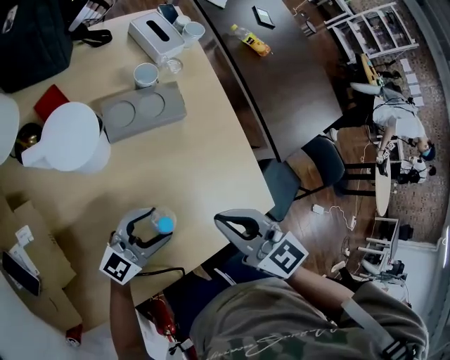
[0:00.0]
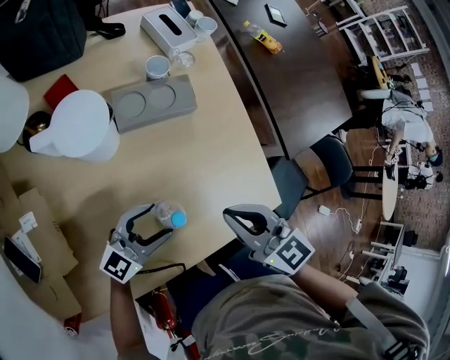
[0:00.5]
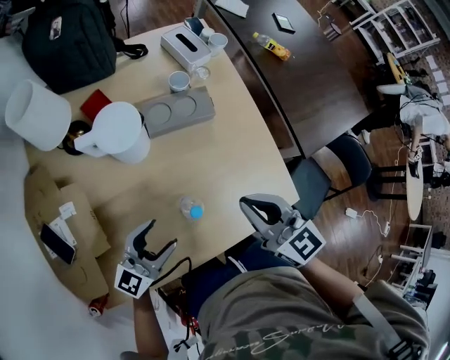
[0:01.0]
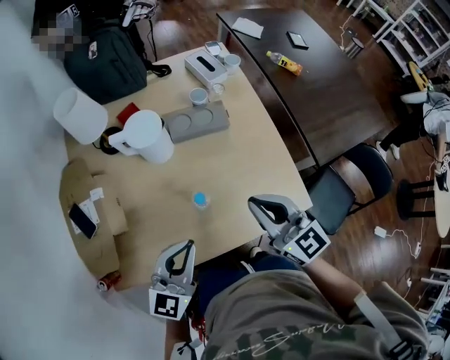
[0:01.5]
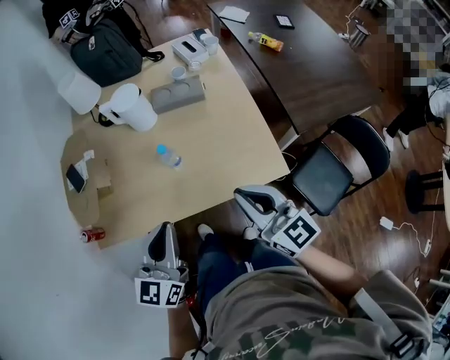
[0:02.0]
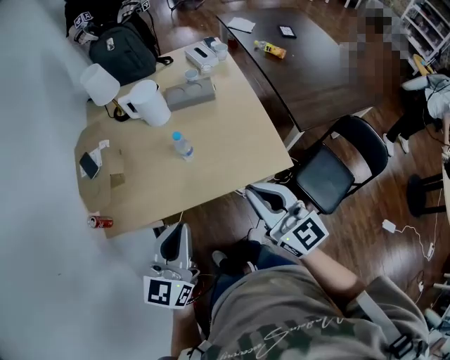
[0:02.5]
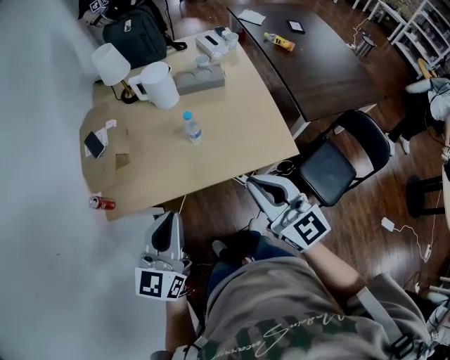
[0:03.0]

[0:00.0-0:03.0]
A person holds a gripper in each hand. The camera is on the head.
0:00.0 to 0:01.5: The right gripper is displaced upward by roughly 10 cm. Meanwhile the left gripper is displaced upward and backward by about 20 cm, rotates some 40 degrees, and closes its fingers.
0:01.5 to 0:03.0: The left gripper moves backward and upward, some 25 cm, and rotates approximately 20 degrees. Meanwhile the right gripper travels backward by roughly 25 cm.

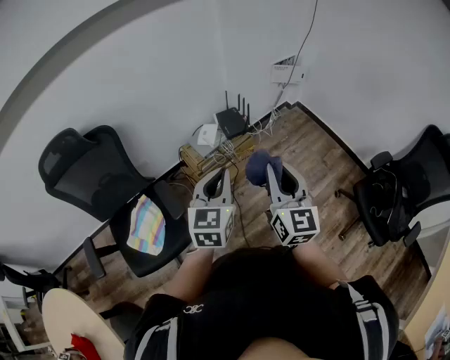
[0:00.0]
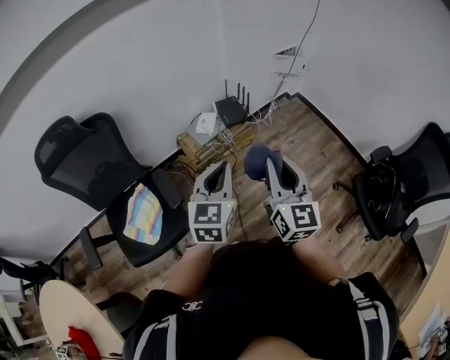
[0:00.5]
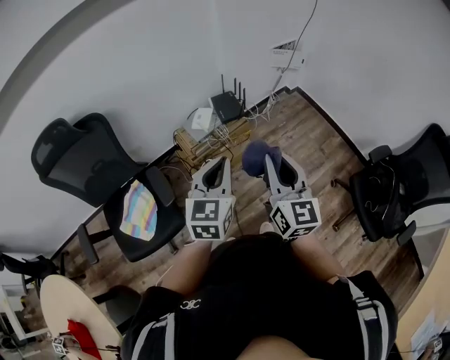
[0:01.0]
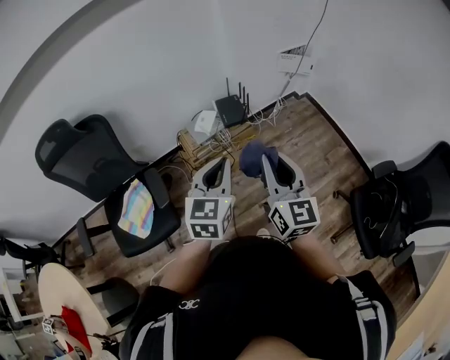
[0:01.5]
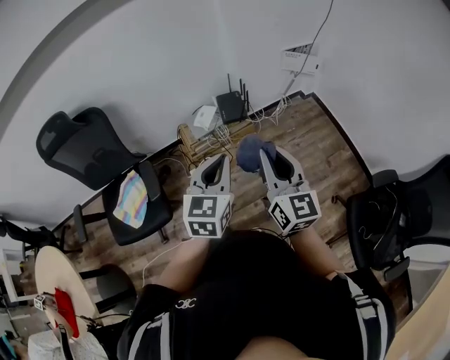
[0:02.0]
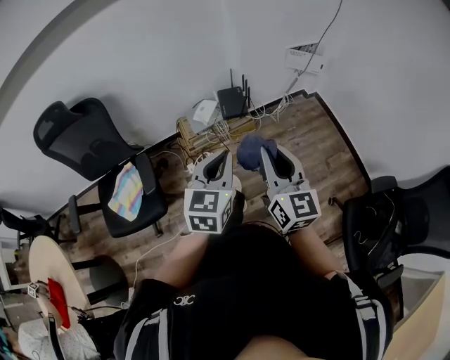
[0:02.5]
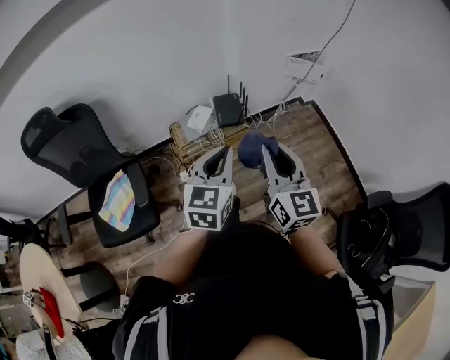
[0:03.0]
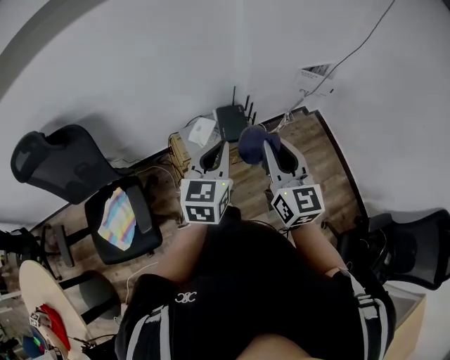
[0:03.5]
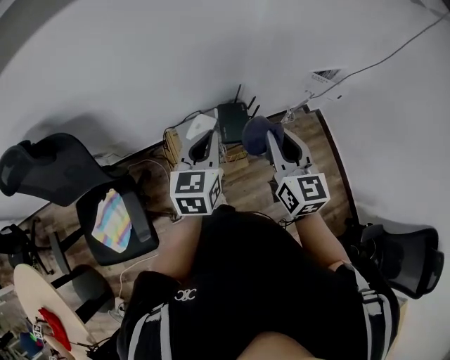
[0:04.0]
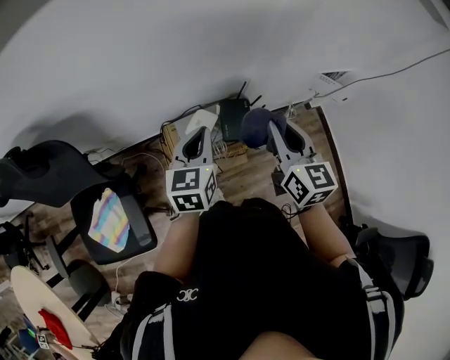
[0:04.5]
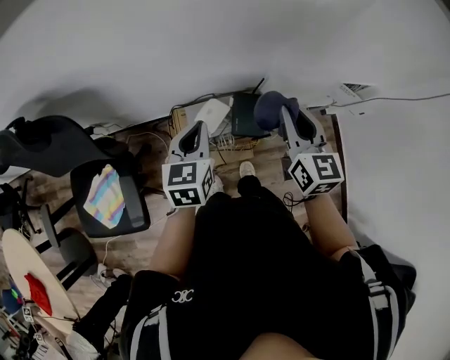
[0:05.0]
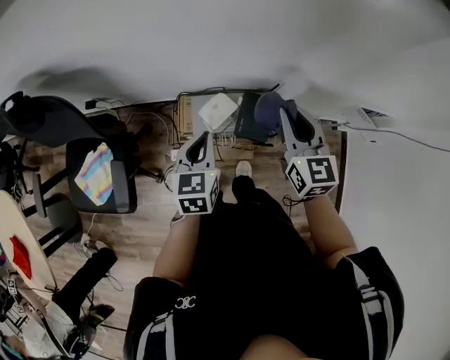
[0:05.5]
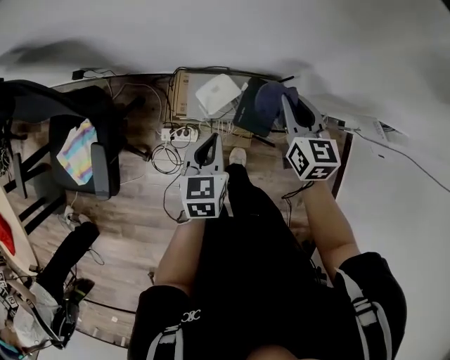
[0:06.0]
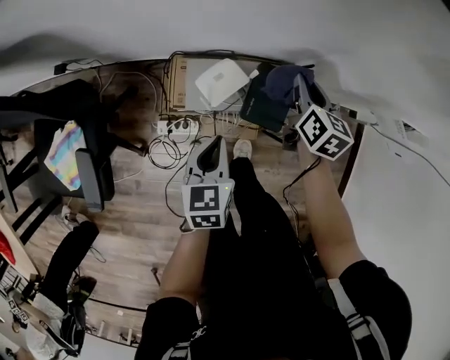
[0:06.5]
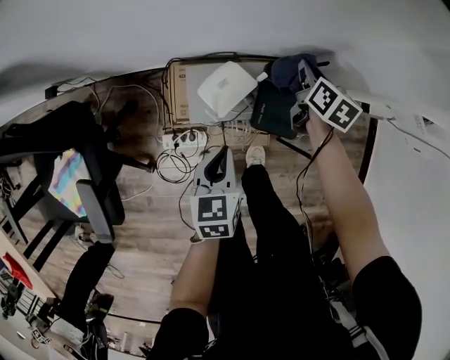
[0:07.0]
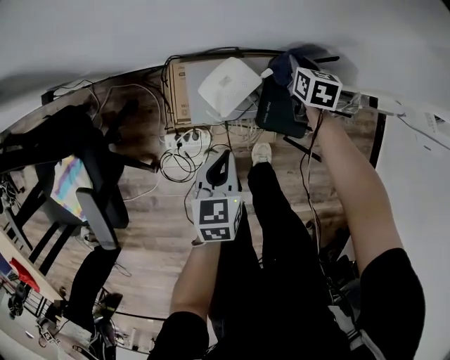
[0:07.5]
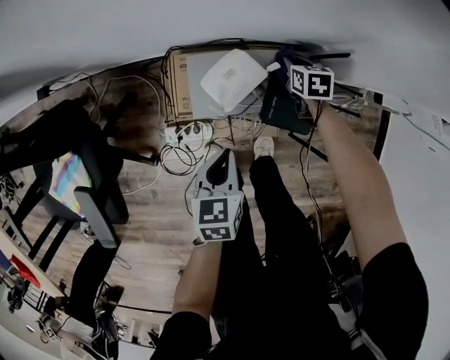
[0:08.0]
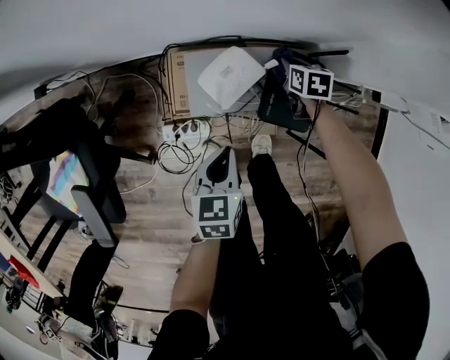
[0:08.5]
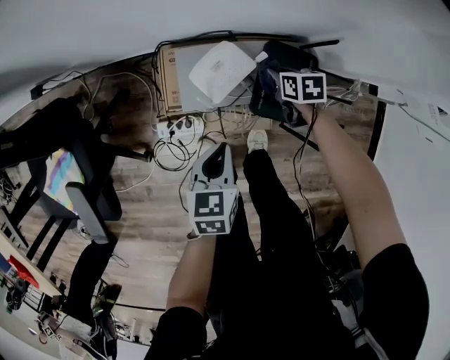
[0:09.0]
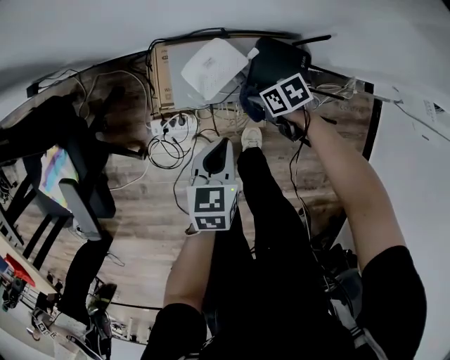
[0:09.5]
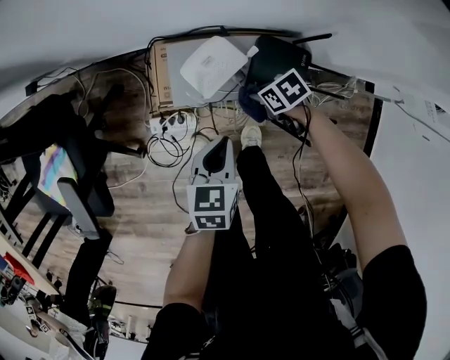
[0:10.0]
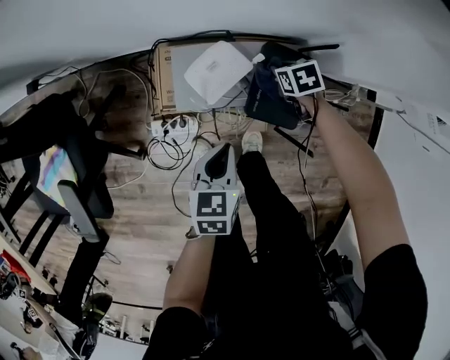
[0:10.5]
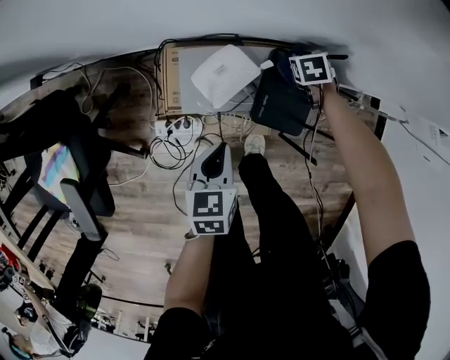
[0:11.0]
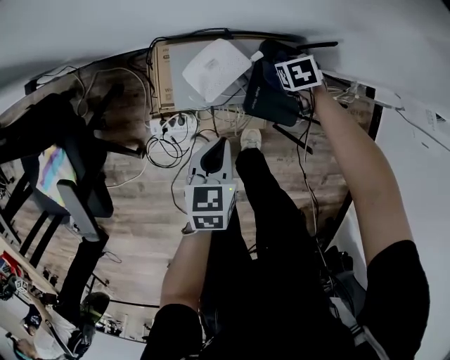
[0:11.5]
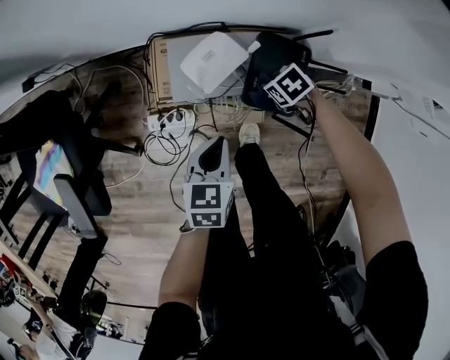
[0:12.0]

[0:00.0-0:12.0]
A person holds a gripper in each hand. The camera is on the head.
0:00.0 to 0:02.0: The grippers both shift to the right and forward by roughly 15 cm.
0:02.0 to 0:04.0: Both grippers move forward, approximately 40 cm.
0:04.0 to 0:06.0: The left gripper moves downward, roughly 25 cm, and turns by about 30 degrees; the right gripper moves some 35 cm, and swivels approximately 30 degrees.
0:06.0 to 0:08.0: The right gripper is displaced downward by about 40 cm, and points its fingers about 30 degrees further downward. Meanwhile the left gripper moves downward, some 25 cm.
0:08.0 to 0:10.0: The right gripper moves approximately 15 cm, and swivels approximately 40 degrees, while the left gripper moves roughly 5 cm.

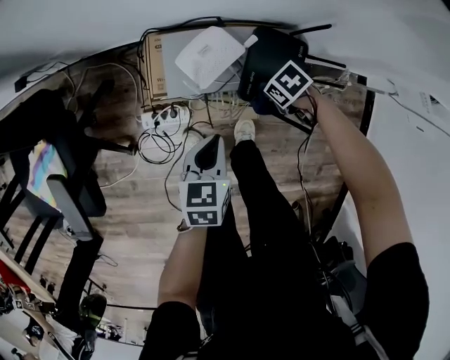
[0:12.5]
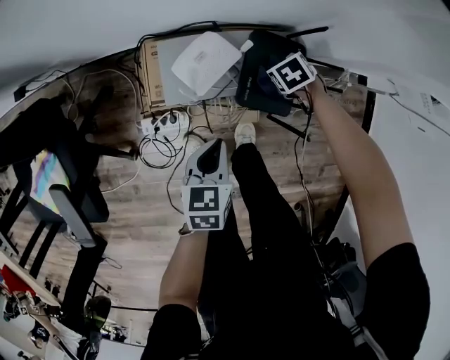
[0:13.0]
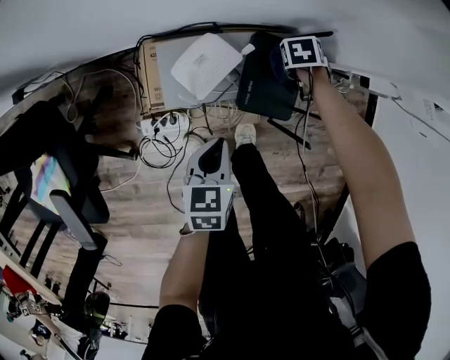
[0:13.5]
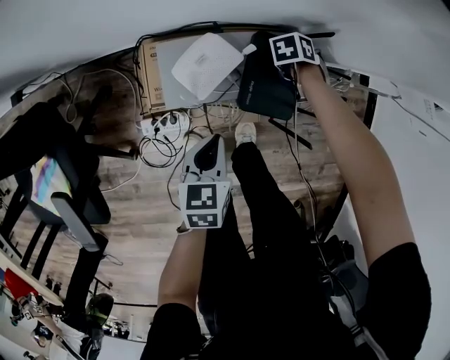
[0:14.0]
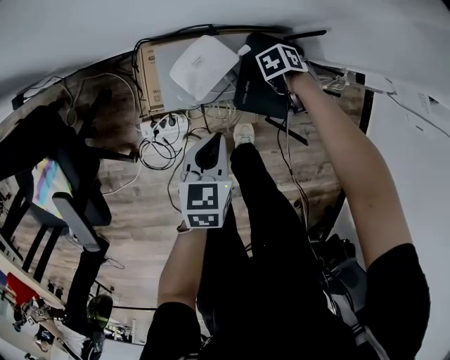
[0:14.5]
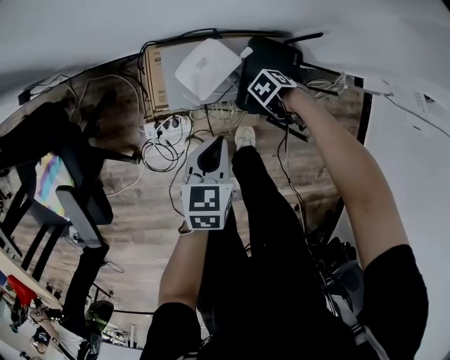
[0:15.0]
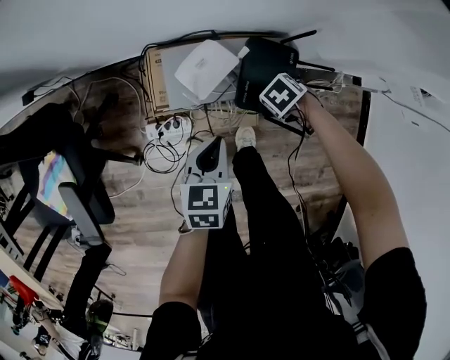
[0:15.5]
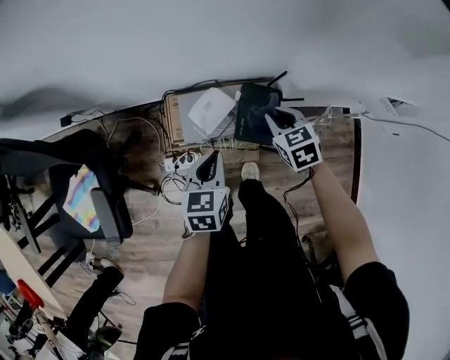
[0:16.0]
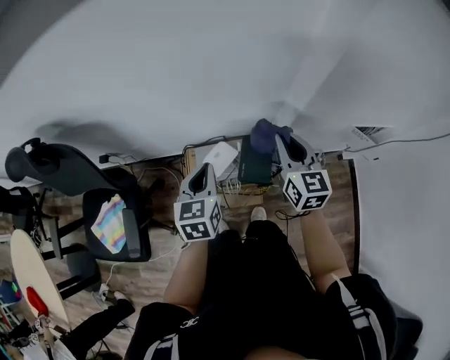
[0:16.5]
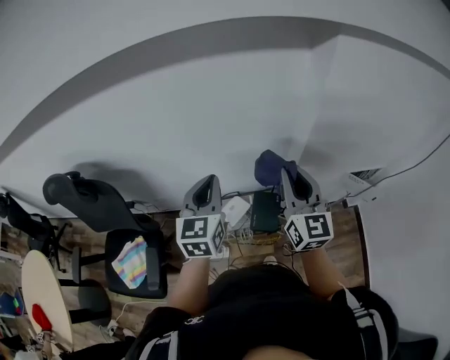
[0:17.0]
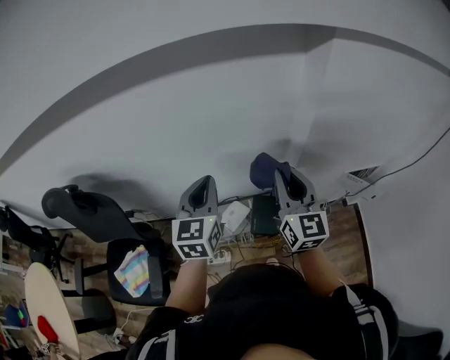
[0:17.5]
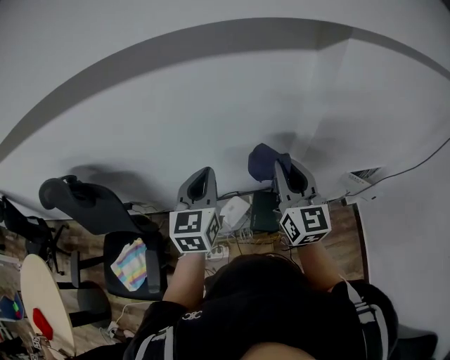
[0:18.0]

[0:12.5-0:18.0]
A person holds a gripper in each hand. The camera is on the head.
0:12.5 to 0:14.5: The right gripper shifts by approximately 15 cm, and turns by some 40 degrees.
0:14.5 to 0:16.0: The left gripper shifts some 15 cm upward; the right gripper travels upward by roughly 25 cm, and rotates roughly 60 degrees.
0:16.0 to 0:18.0: Both grippers move upward, approximately 50 cm. The left gripper changes its angle by approximately 30 degrees, while the right gripper angles its fingers upward, by roughly 60 degrees.

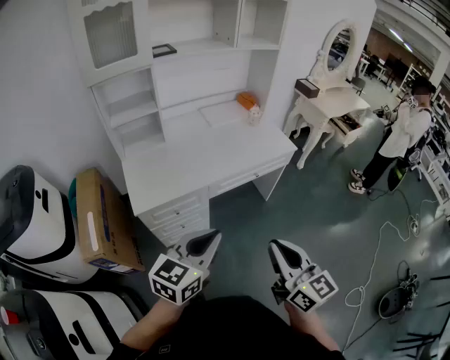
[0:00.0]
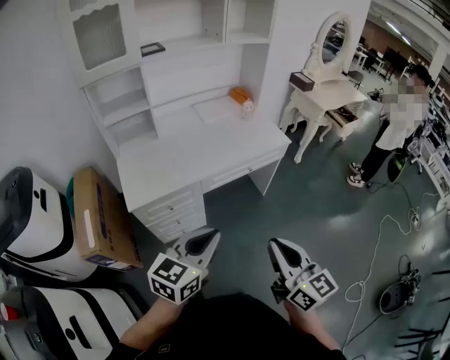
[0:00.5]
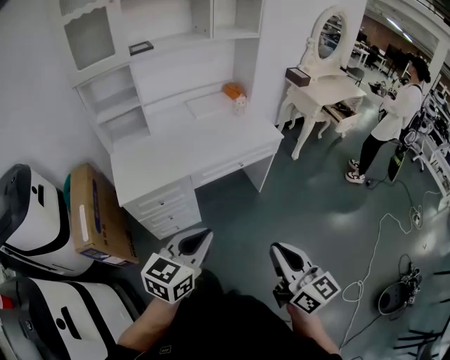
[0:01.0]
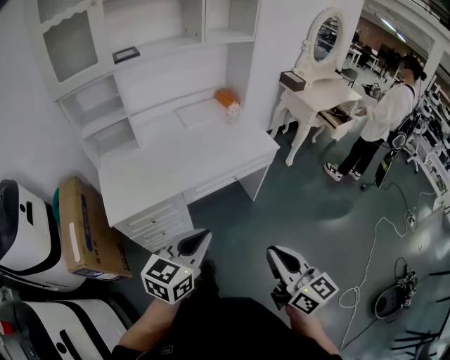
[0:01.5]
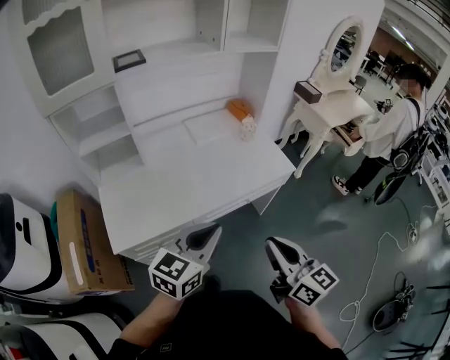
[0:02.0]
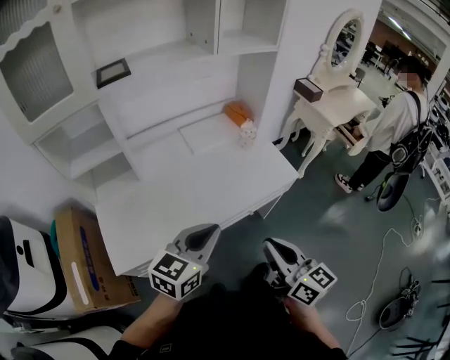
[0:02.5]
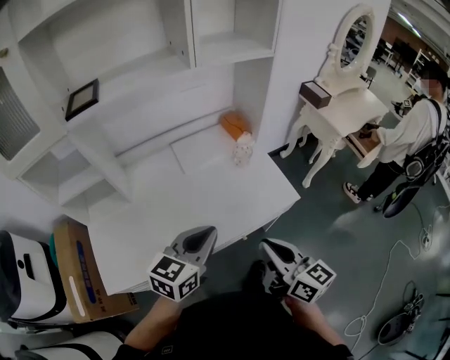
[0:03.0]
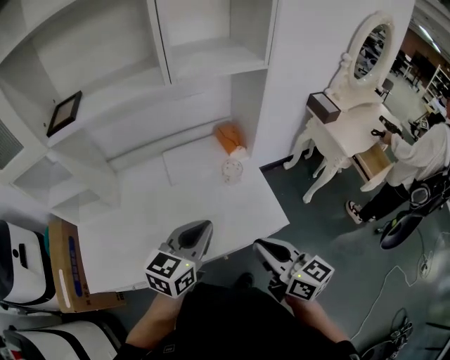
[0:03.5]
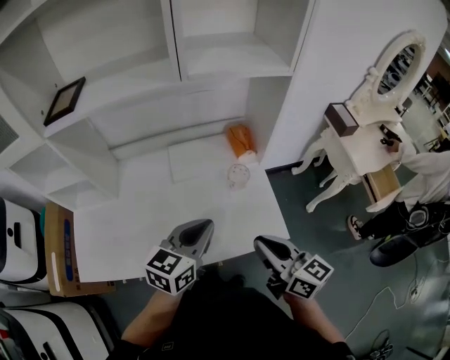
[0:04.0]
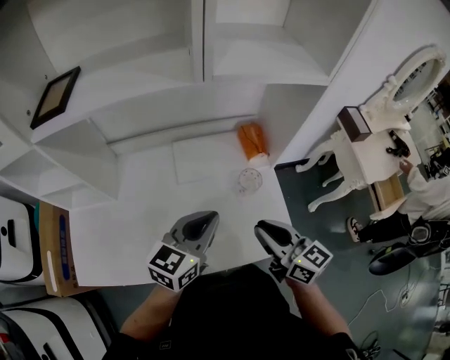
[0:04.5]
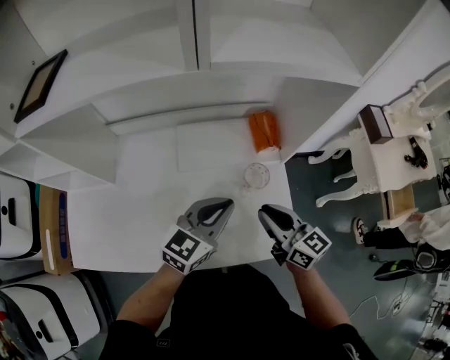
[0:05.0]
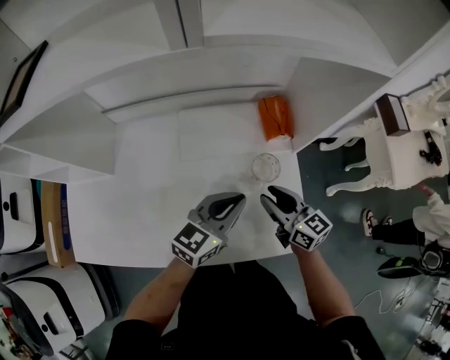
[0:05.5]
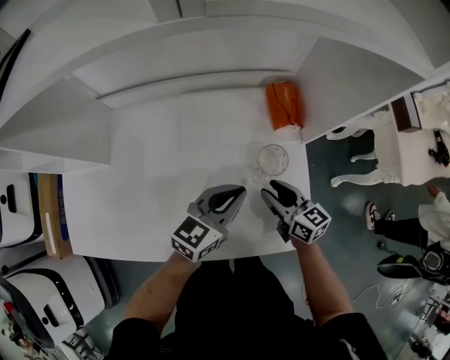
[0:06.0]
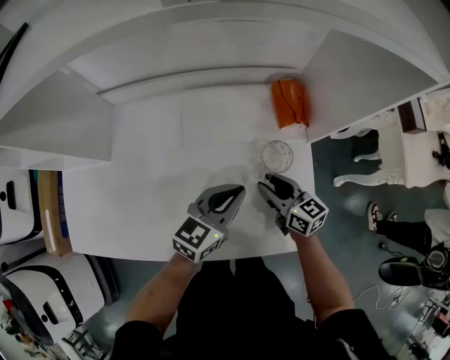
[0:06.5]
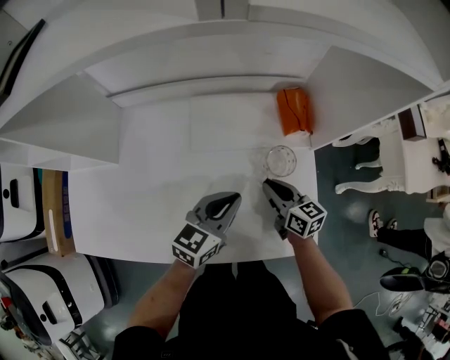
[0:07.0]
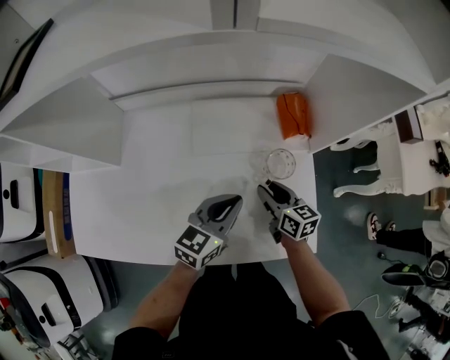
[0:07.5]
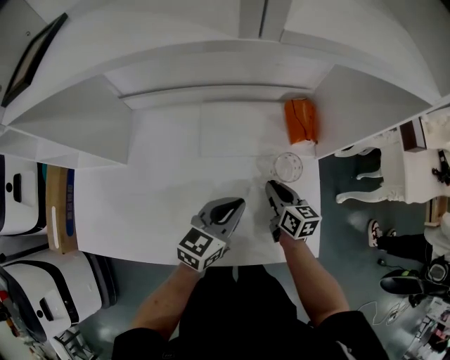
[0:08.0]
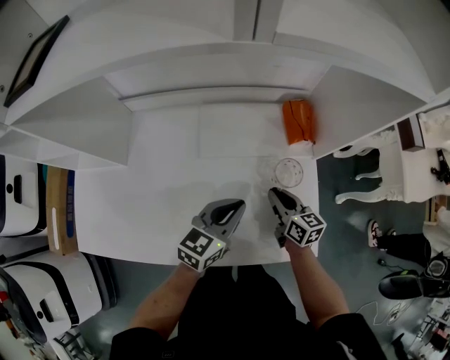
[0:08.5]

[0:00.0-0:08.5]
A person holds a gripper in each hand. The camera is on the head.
0:00.0 to 0:02.0: The grippers both shift forward by approximately 20 cm.
0:02.0 to 0:04.0: The left gripper is displaced forward and to the right by approximately 35 cm. Meanwhile the right gripper heads forward, covering roughly 35 cm, and rotates approximately 20 degrees.
0:04.0 to 0:06.5: The right gripper is displaced downward and forward by about 35 cm, and opens; the left gripper moves downward and forward, approximately 20 cm.
0:06.5 to 0:08.5: The grippers move only a little.
